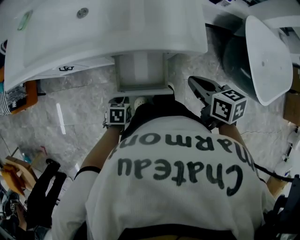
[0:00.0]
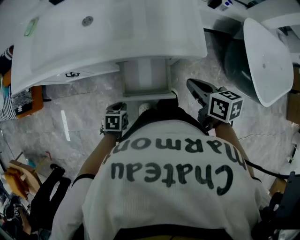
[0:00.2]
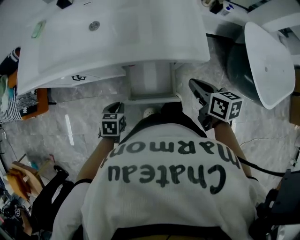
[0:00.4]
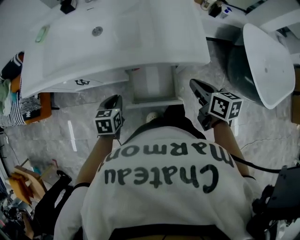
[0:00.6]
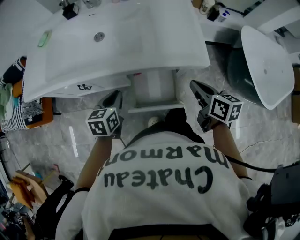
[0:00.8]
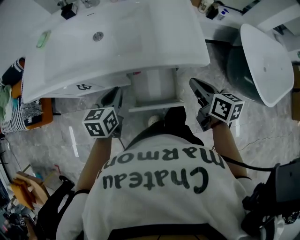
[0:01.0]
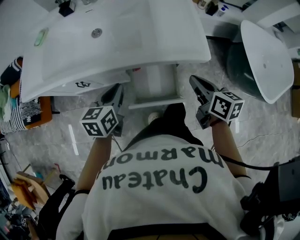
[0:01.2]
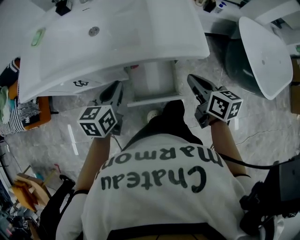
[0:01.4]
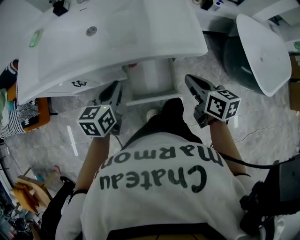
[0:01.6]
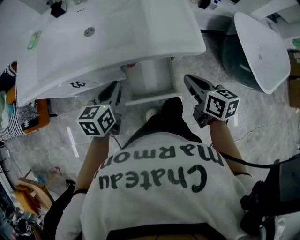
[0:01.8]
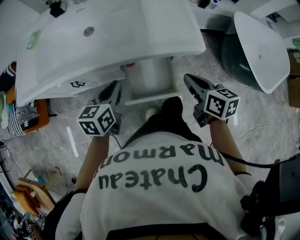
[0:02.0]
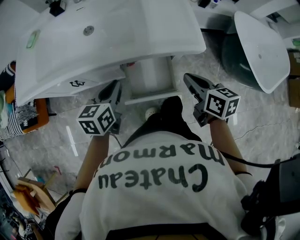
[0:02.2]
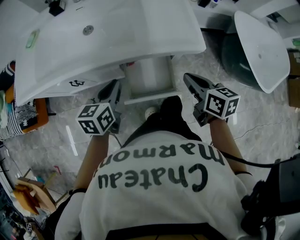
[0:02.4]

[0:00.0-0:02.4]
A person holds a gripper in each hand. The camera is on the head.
0:00.0 to 0:01.2: The right gripper changes place by approximately 5 cm, and changes its angle by roughly 20 degrees. Meanwhile the left gripper goes some 25 cm upward and forward, and tilts its fingers some 30 degrees upward.
0:01.2 to 0:02.4: The grippers stay close to where they were, moving slightly.

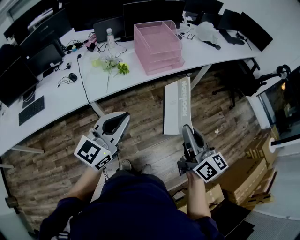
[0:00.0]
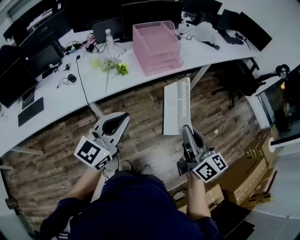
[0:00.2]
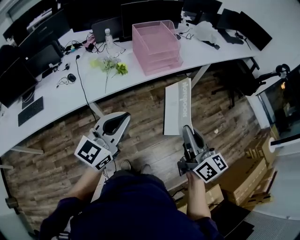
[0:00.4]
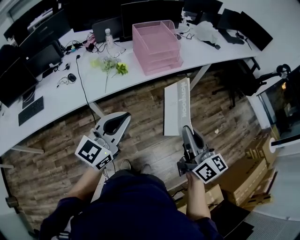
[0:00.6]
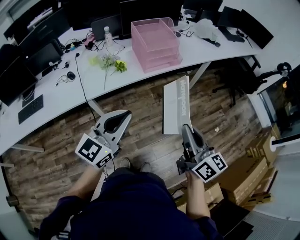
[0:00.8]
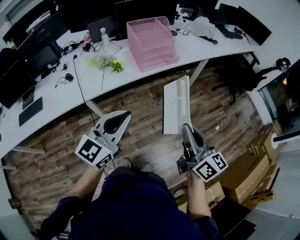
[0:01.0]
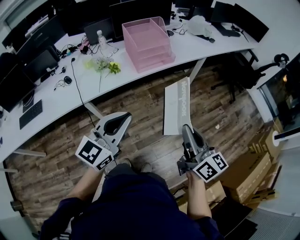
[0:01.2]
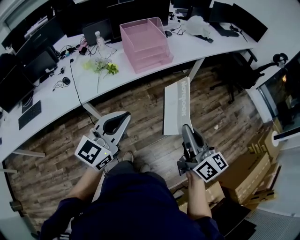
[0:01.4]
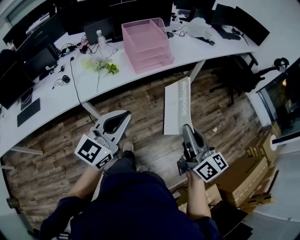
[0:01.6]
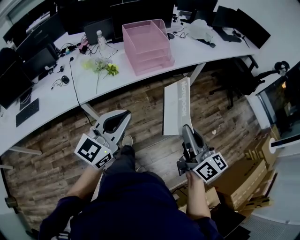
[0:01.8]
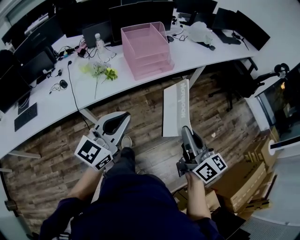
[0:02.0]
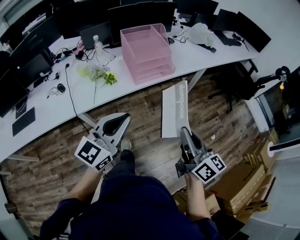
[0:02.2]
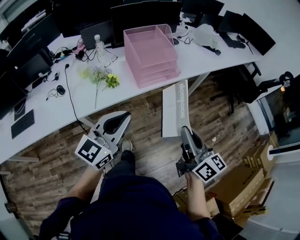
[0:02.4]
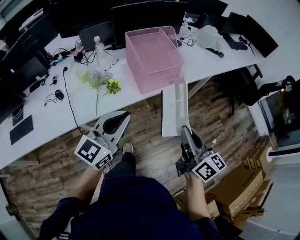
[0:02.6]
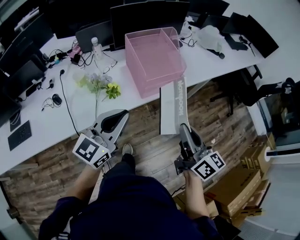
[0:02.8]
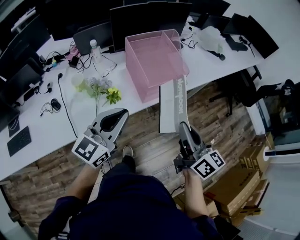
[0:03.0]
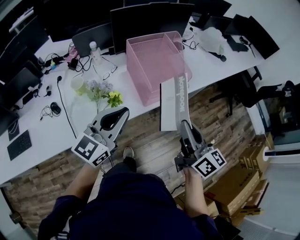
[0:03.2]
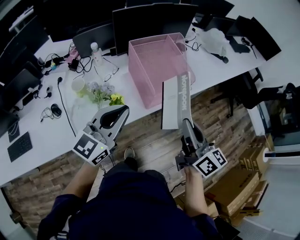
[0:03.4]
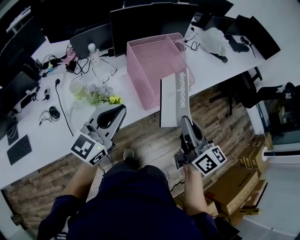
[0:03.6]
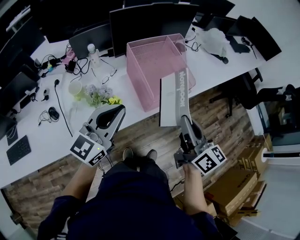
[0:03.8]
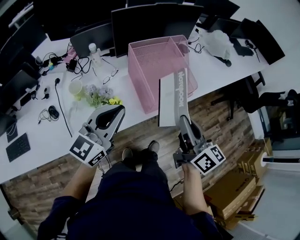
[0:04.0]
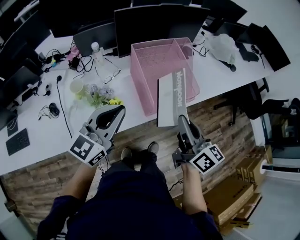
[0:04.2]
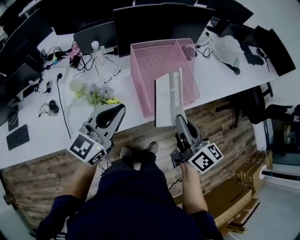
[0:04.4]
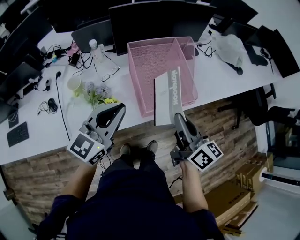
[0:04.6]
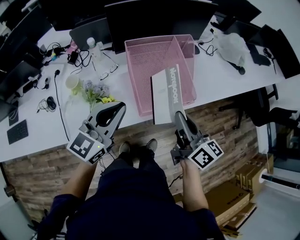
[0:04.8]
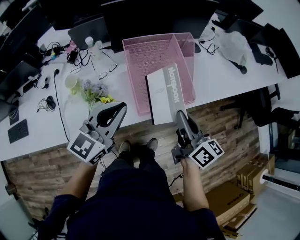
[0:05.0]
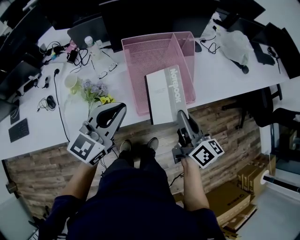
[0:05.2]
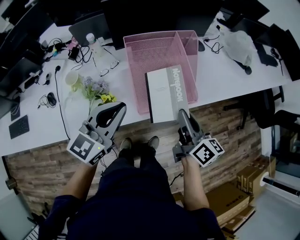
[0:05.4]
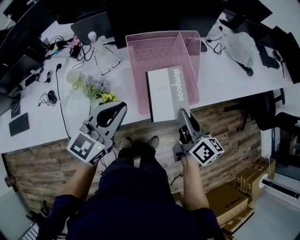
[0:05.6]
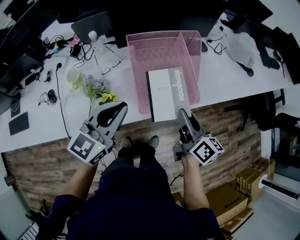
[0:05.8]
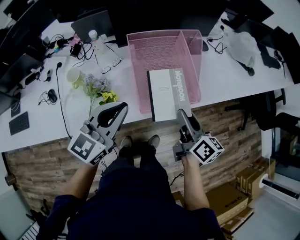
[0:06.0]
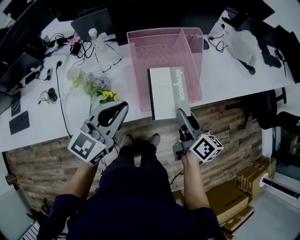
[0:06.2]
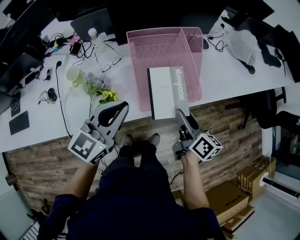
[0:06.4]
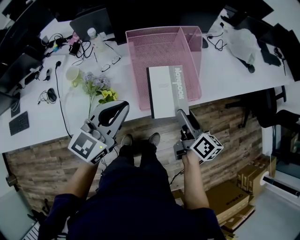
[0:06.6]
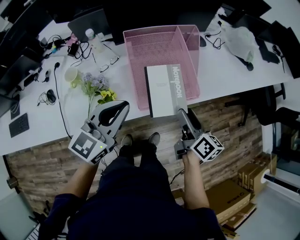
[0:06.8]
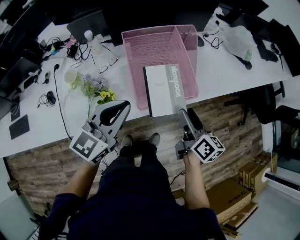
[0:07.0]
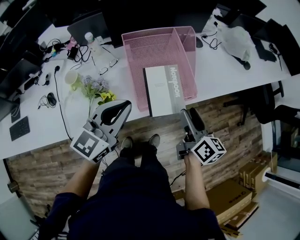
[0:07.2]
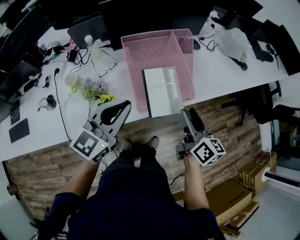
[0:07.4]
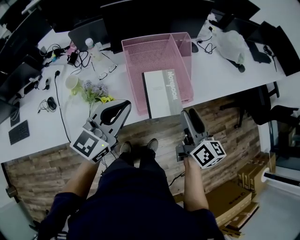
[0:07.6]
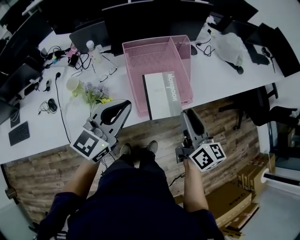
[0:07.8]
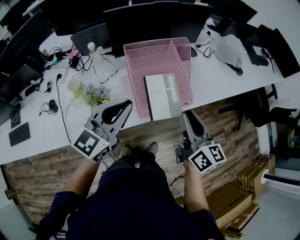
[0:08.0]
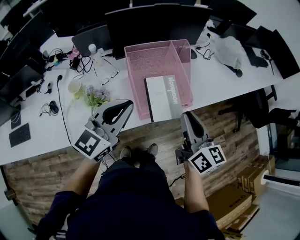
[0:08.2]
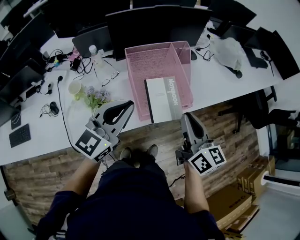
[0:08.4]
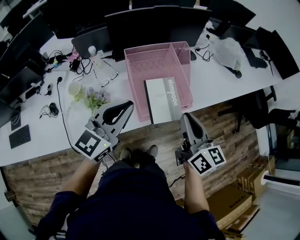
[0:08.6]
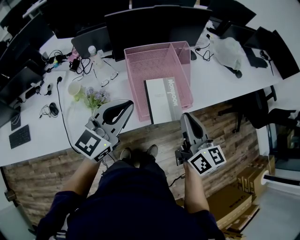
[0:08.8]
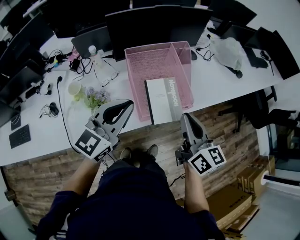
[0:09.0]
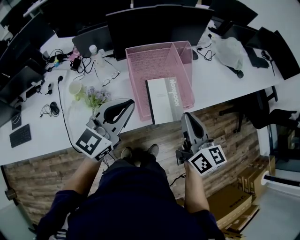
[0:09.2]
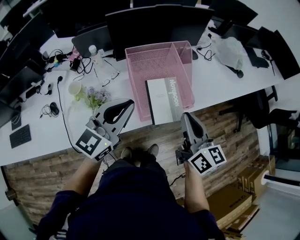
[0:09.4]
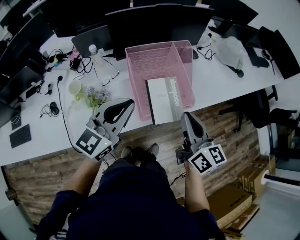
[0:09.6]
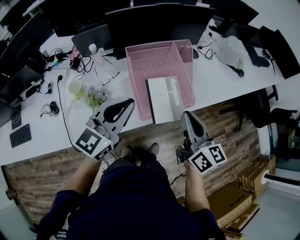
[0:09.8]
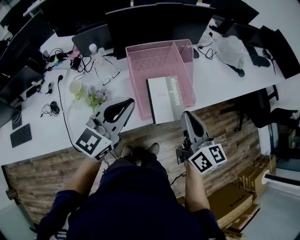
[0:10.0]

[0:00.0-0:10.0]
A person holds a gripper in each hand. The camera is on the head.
0:00.0 to 0:01.4: The two grippers go approximately 10 cm to the right.
0:01.4 to 0:02.8: The two grippers go roughly 25 cm forward and to the left.
0:02.8 to 0:04.2: The right gripper travels forward by some 15 cm; the left gripper is displaced forward and to the left by about 15 cm.
0:04.2 to 0:05.8: The left gripper moves to the right, approximately 5 cm, while the right gripper moves downward, forward and to the right, about 15 cm.
0:05.8 to 0:07.2: The right gripper opens up.
0:07.2 to 0:08.6: The right gripper moves upward, some 10 cm, and closes up.
0:08.6 to 0:10.0: Both grippers stay put.

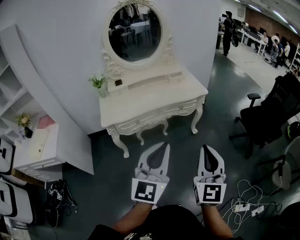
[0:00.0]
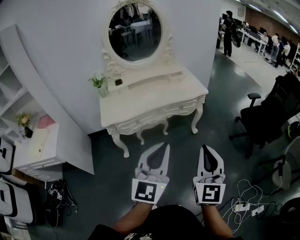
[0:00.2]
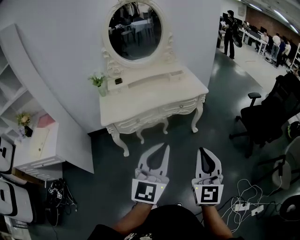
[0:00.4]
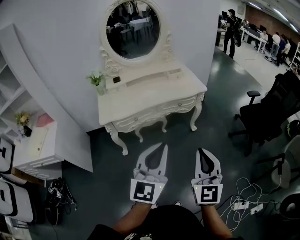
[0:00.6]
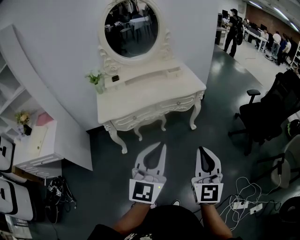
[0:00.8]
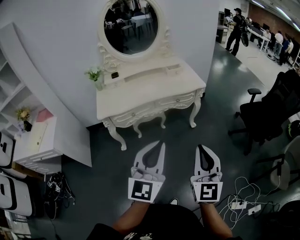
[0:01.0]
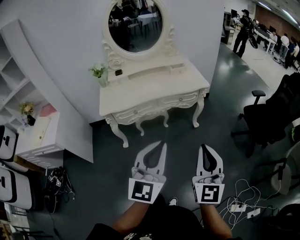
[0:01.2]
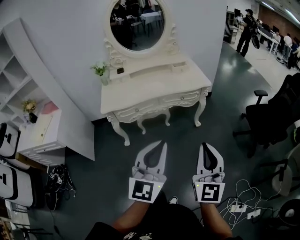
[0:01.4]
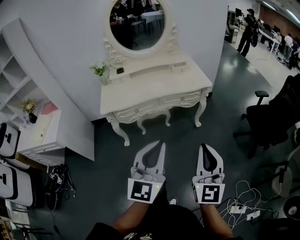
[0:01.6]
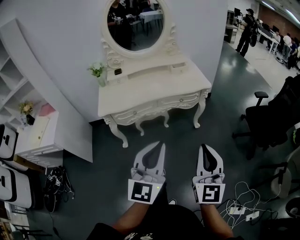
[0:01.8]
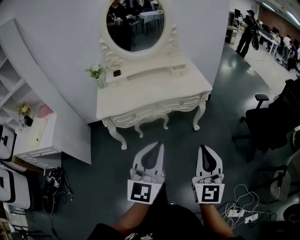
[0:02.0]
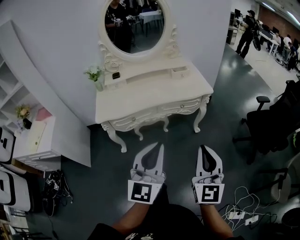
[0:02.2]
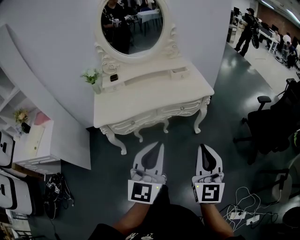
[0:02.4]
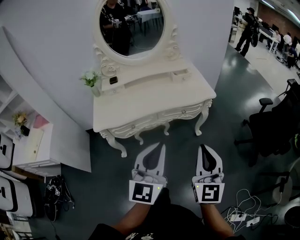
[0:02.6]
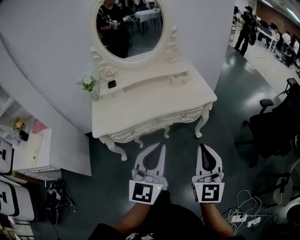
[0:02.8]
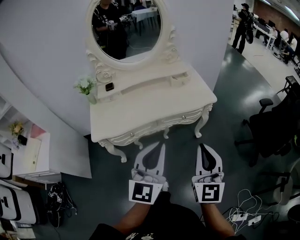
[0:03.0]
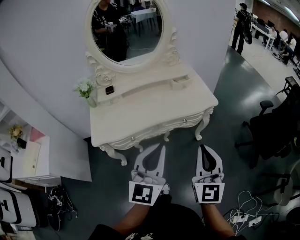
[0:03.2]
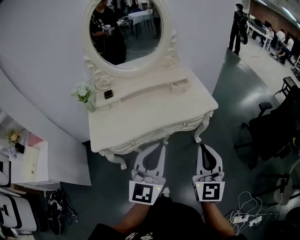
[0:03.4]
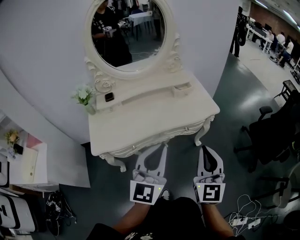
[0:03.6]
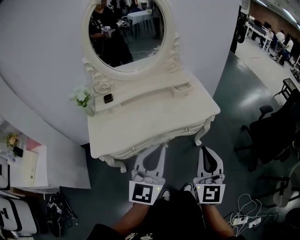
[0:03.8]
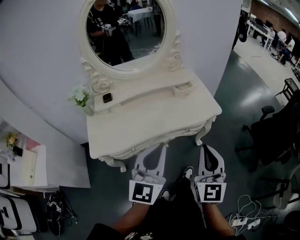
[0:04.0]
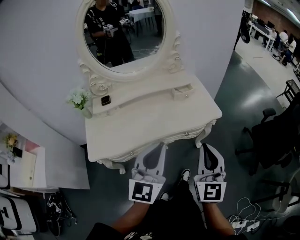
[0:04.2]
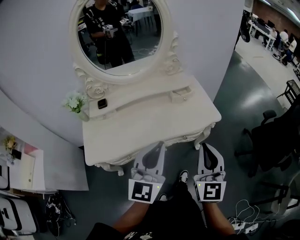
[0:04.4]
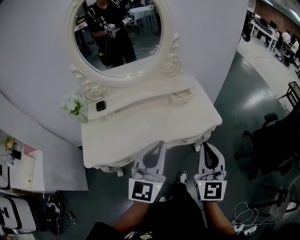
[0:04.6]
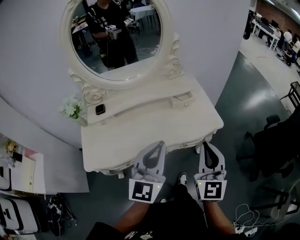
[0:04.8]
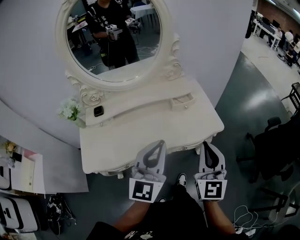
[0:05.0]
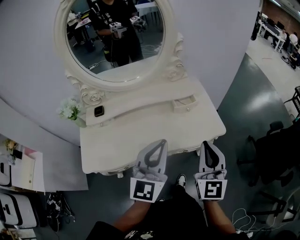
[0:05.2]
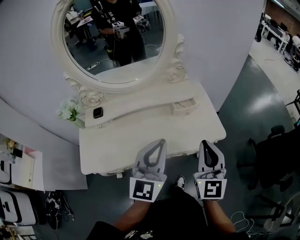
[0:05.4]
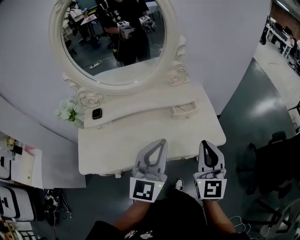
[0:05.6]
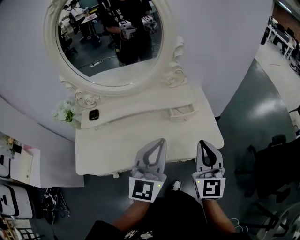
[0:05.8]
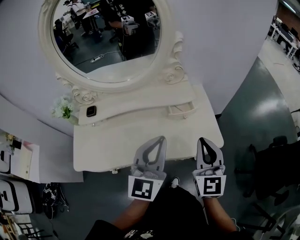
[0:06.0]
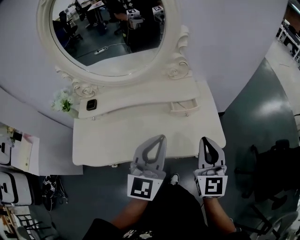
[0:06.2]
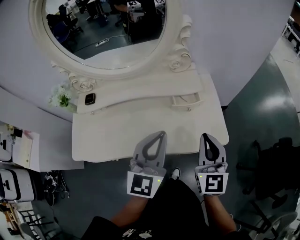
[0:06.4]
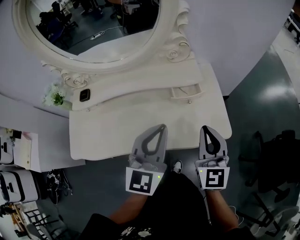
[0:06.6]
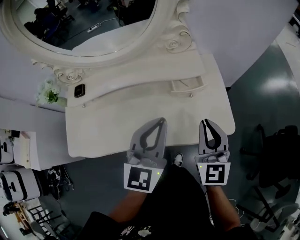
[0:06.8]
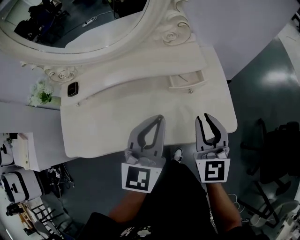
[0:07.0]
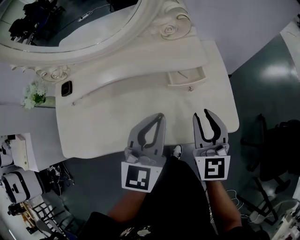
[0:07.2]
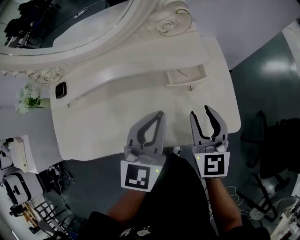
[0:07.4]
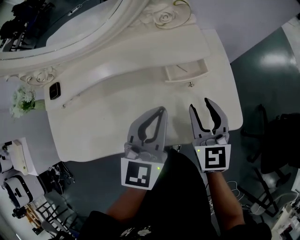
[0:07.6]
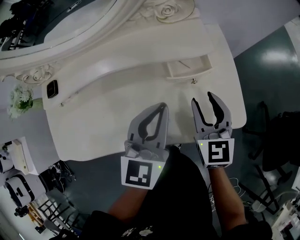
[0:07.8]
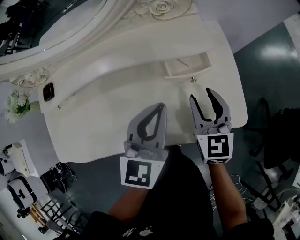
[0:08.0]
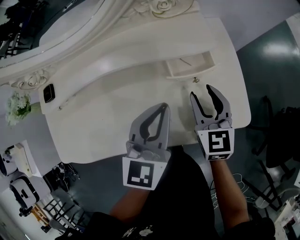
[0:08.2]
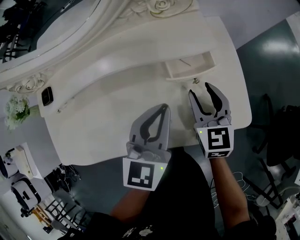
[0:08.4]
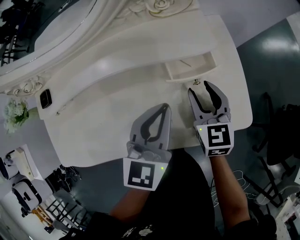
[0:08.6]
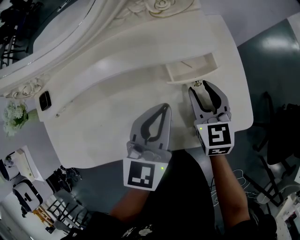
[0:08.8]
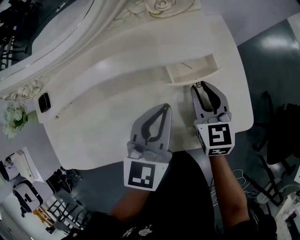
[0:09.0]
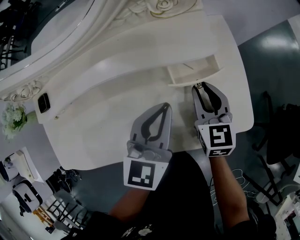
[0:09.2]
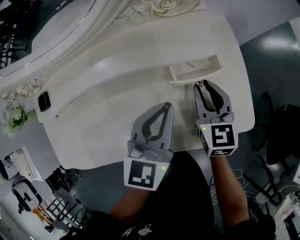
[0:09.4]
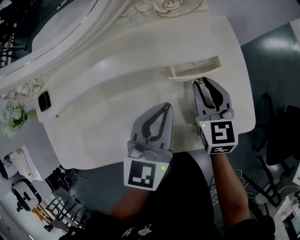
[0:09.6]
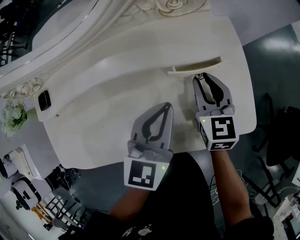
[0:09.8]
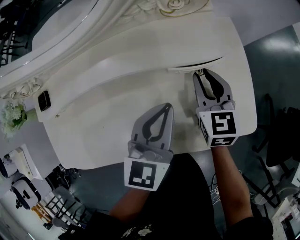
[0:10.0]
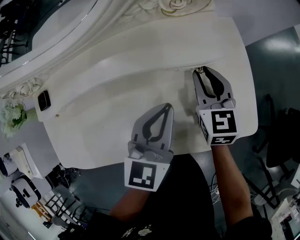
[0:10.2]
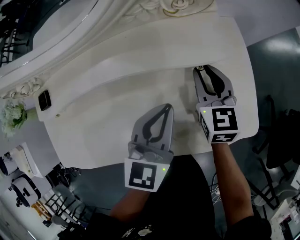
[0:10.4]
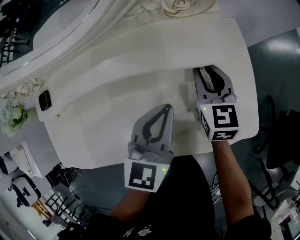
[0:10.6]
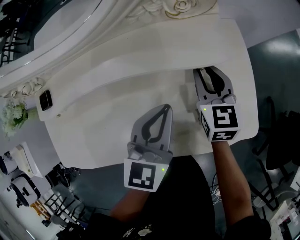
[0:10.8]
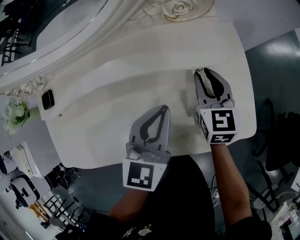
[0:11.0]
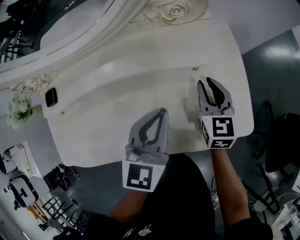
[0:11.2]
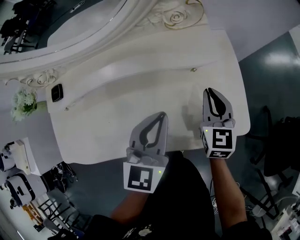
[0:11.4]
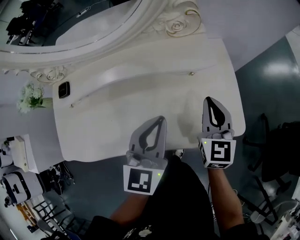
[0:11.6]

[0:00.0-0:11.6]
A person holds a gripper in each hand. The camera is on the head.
0:00.0 to 0:01.4: The right gripper shifts about 5 cm to the right, while the left gripper ends up roughly 5 cm from where it was.
0:01.4 to 0:02.8: Both grippers travel together forward, some 20 cm.
0:02.8 to 0:04.4: Both grippers move forward, about 20 cm.
0:04.4 to 0:05.8: The grippers both shift forward by roughly 20 cm.
0:05.8 to 0:07.2: The grippers both shift downward and forward by approximately 15 cm. The right gripper opens up.
0:07.2 to 0:08.8: The left gripper goes roughly 10 cm downward; the right gripper heads downward and forward, covering roughly 15 cm.
0:08.8 to 0:10.2: The right gripper travels forward by about 5 cm.
0:10.2 to 0:11.6: The grippers both shift upward and backward by about 10 cm. The right gripper closes.
